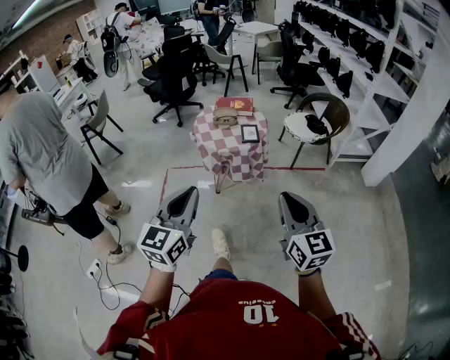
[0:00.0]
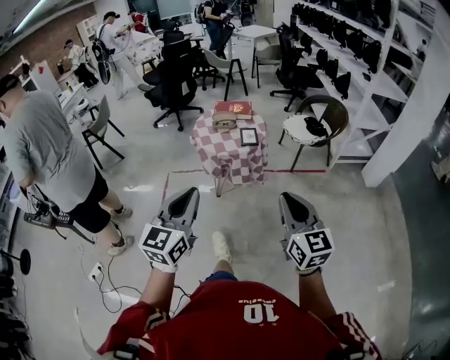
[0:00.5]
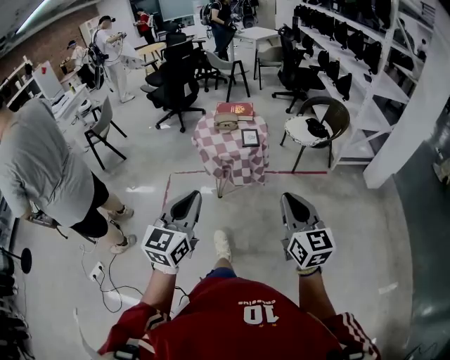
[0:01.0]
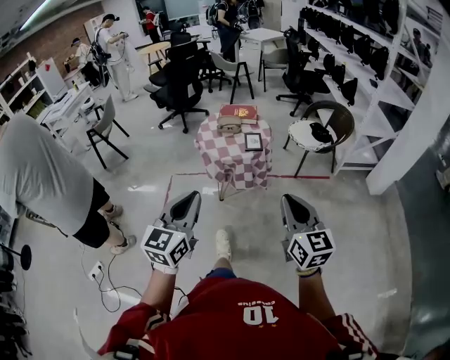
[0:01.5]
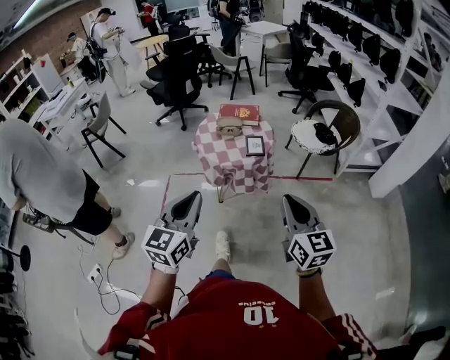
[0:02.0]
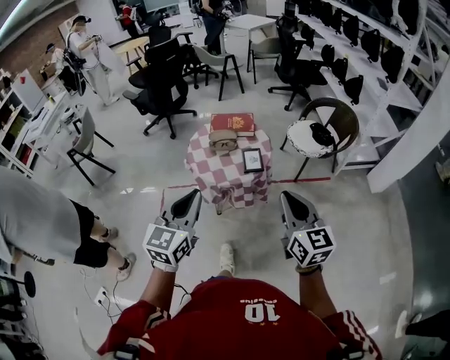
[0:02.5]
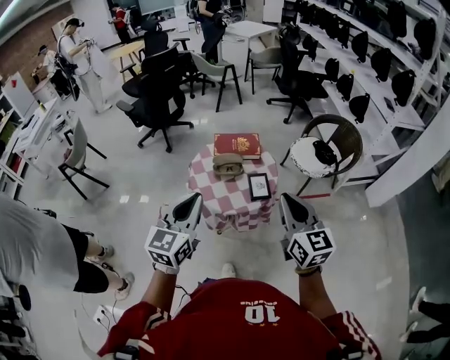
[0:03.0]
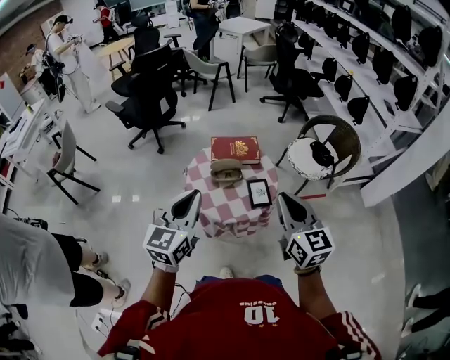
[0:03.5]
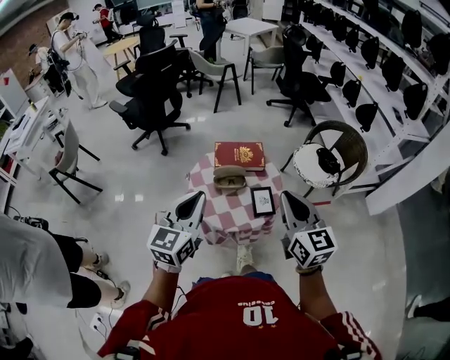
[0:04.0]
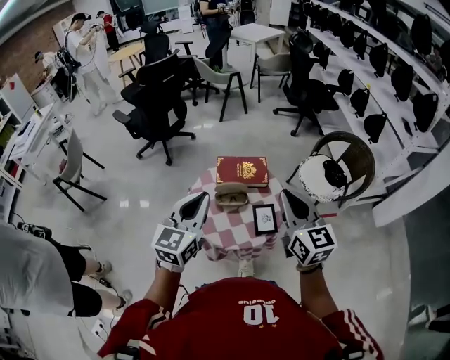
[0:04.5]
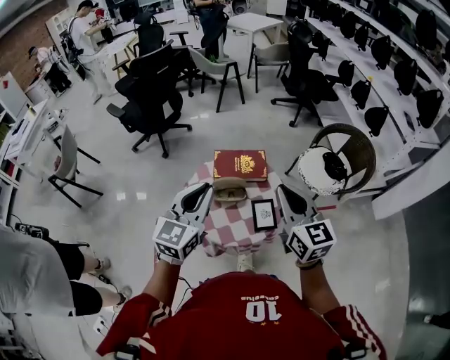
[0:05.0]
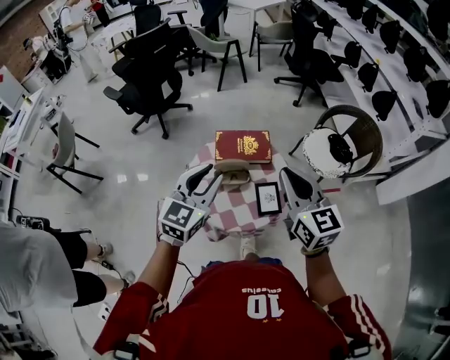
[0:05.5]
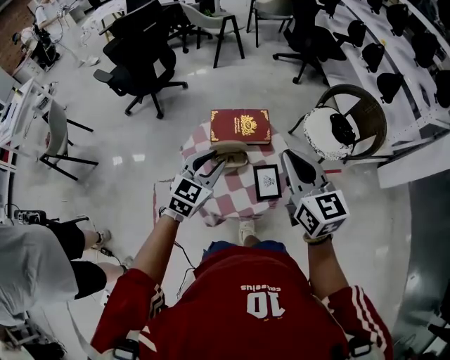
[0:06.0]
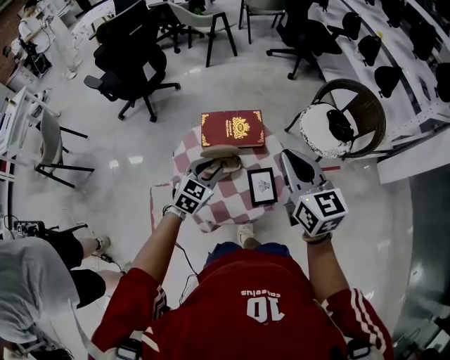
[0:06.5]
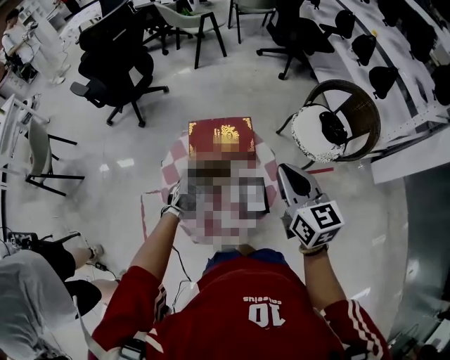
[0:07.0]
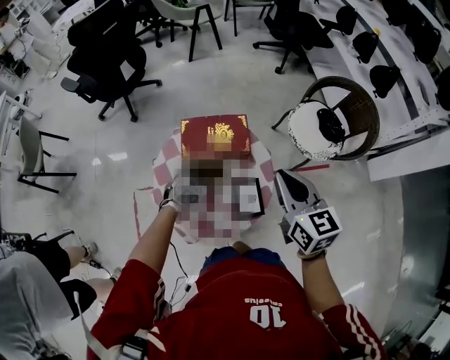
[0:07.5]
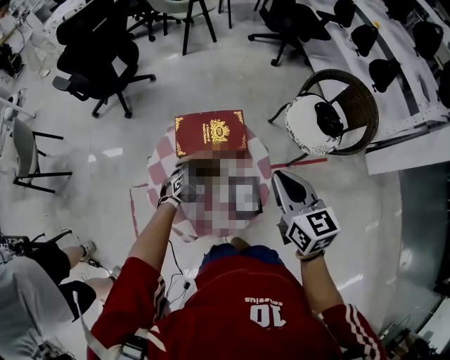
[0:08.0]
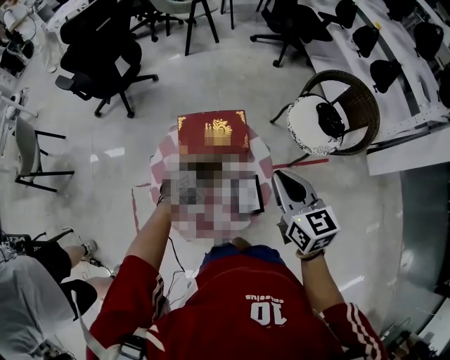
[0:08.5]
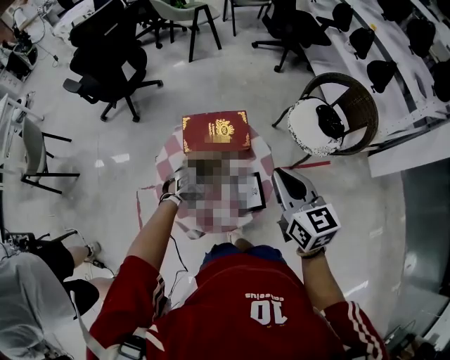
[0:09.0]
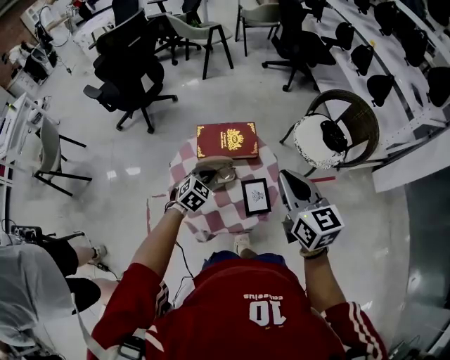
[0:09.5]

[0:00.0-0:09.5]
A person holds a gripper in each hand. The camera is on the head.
0:00.0 to 0:02.0: Both grippers move forward, approximately 10 cm.
0:02.0 to 0:04.0: The pair of grippers is taken forward, some 40 cm.
0:04.0 to 0:05.5: Both grippers move forward, approximately 15 cm. The left gripper opens.
0:05.5 to 0:07.5: The right gripper shifts roughly 15 cm downward, forward and to the right, while the left gripper heads downward and forward, covering approximately 40 cm, and tips its fingers downward by roughly 40 degrees.
0:07.5 to 0:09.5: The left gripper is displaced upward and backward by some 10 cm, and closes, while the right gripper moves backward and upward, roughly 10 cm.

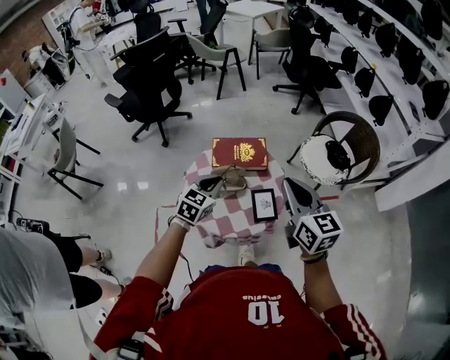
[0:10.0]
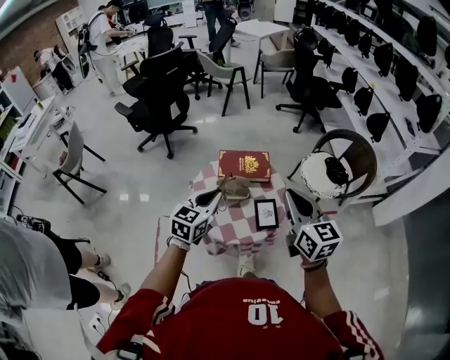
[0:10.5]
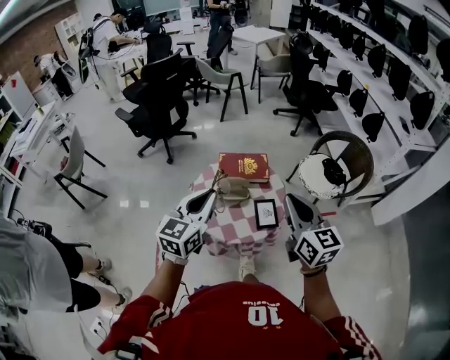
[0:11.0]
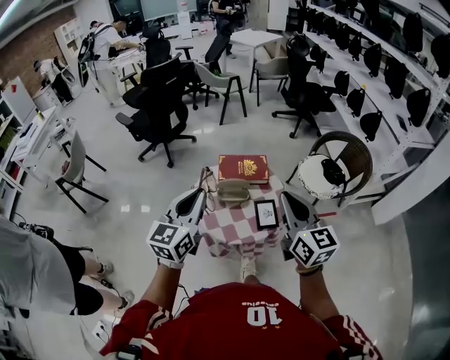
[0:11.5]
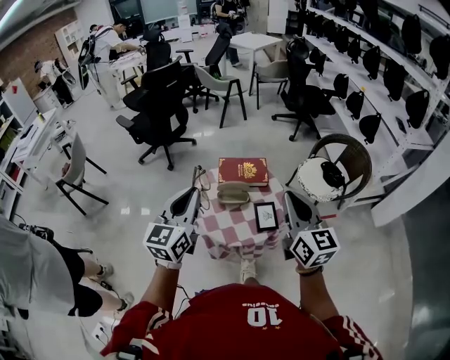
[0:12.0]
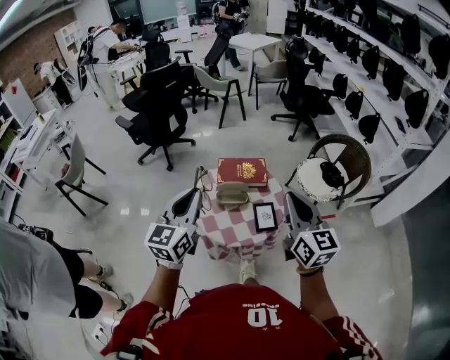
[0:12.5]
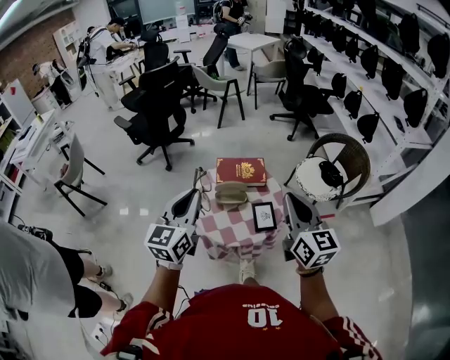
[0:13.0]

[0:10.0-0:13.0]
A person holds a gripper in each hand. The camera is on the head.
0:10.0 to 0:11.5: The left gripper heads upward and backward, covering some 25 cm, and turns by approximately 30 degrees; the right gripper is displaced backward and upward by approximately 10 cm.
0:11.5 to 0:13.0: There are only small adjustments of the grippers.

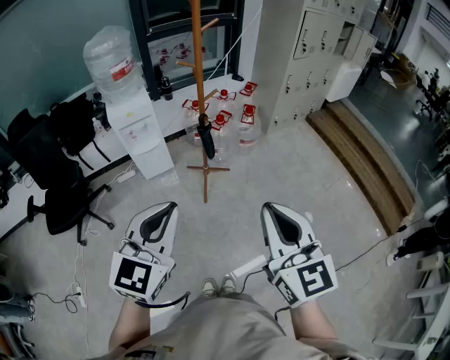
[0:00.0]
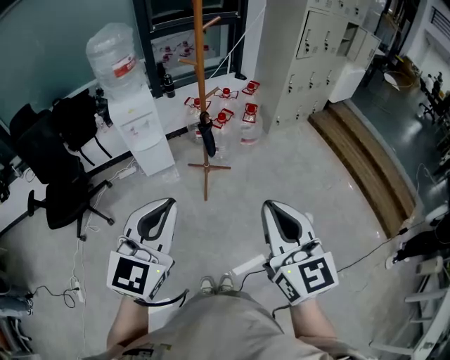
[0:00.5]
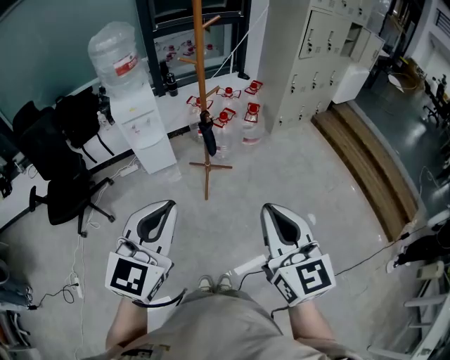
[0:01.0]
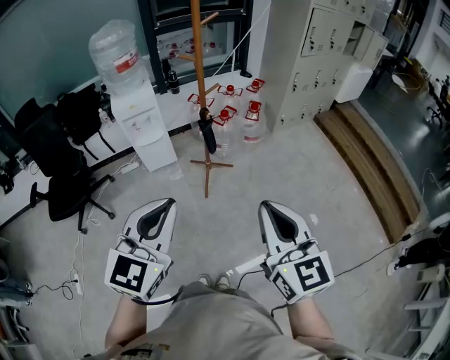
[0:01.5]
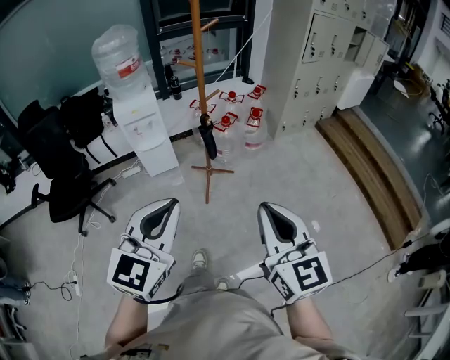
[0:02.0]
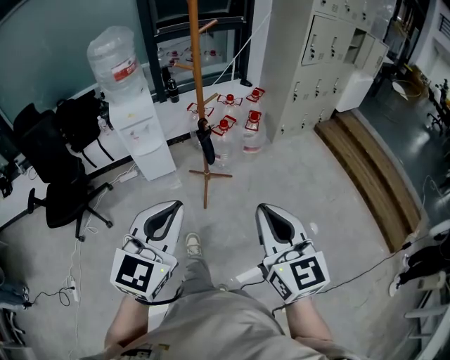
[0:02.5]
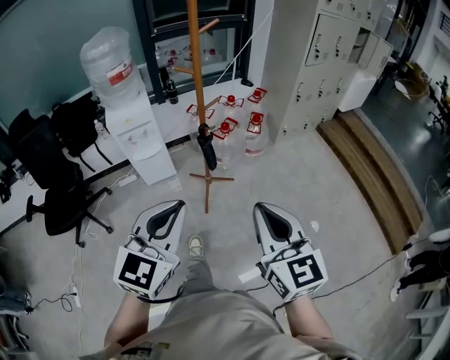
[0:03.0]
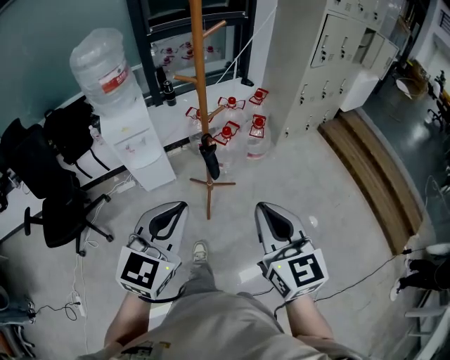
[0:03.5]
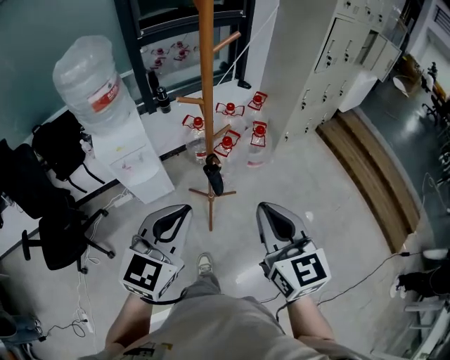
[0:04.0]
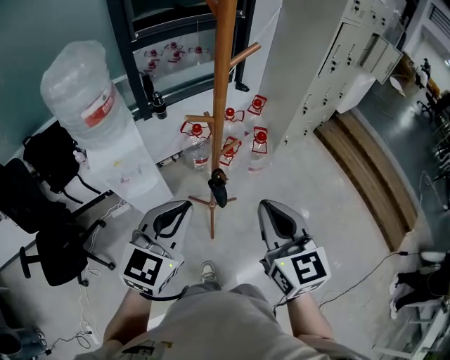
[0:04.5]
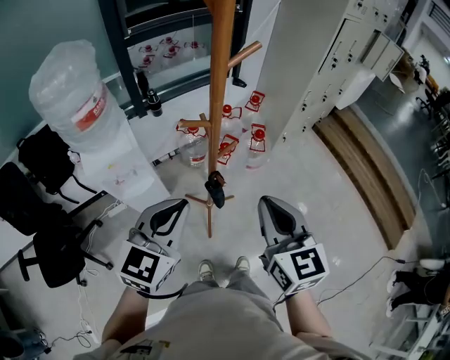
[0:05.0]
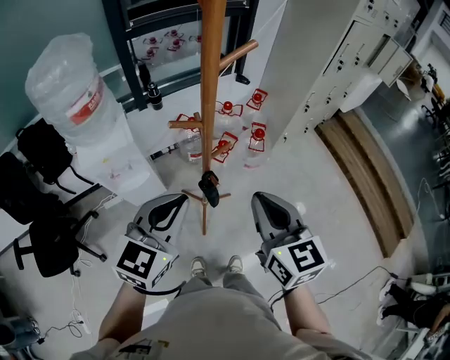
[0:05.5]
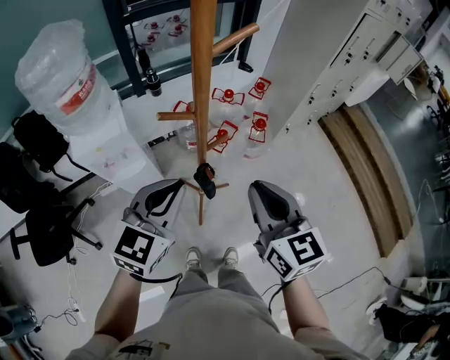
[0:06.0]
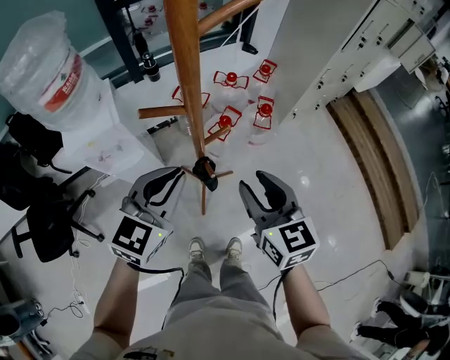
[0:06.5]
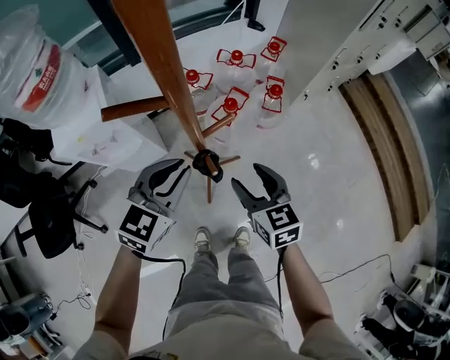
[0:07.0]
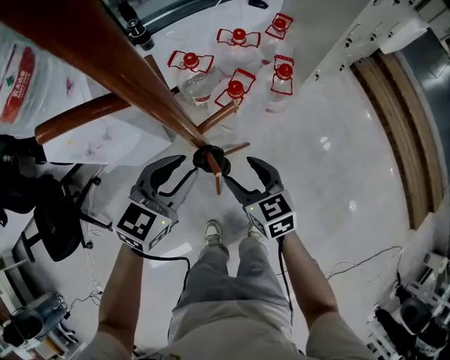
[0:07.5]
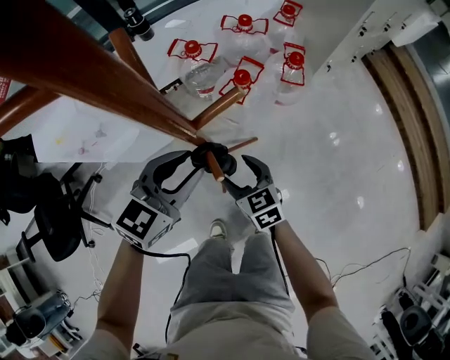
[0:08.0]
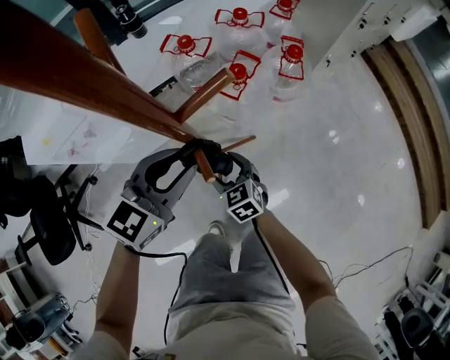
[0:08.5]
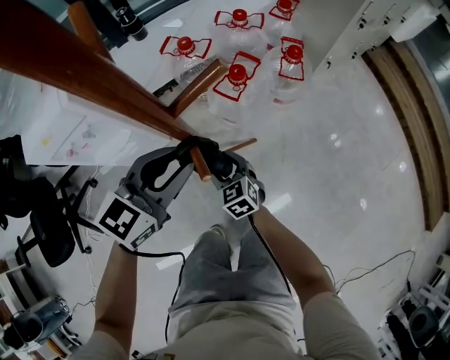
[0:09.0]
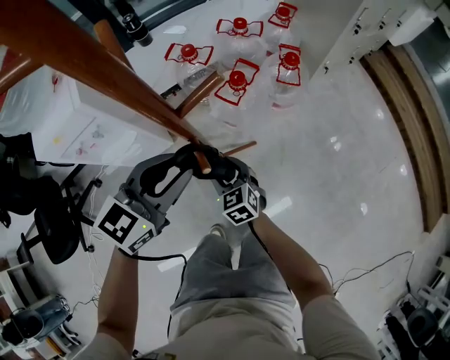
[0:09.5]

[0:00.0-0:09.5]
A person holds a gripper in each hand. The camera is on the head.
0:00.0 to 0:02.0: The grippers both shift to the right by about 5 cm.
0:02.0 to 0:04.0: Both grippers move forward, some 35 cm.
0:04.0 to 0:05.5: Both grippers travel together forward, approximately 15 cm.
0:05.5 to 0:07.5: The right gripper shifts some 40 cm downward, rotates some 20 degrees, and opens up, while the left gripper travels downward and forward by approximately 30 cm, and opens its fingers.
0:07.5 to 0:09.5: The right gripper is displaced downward by roughly 20 cm.

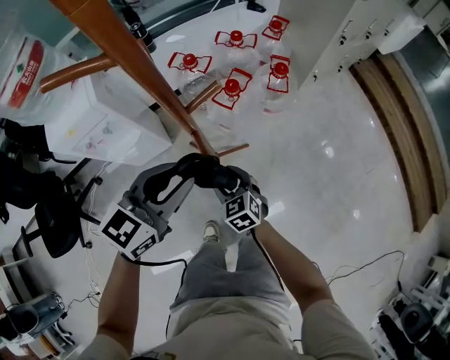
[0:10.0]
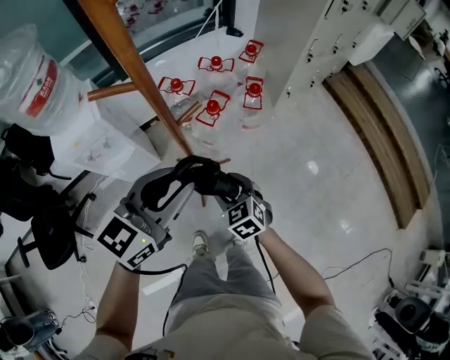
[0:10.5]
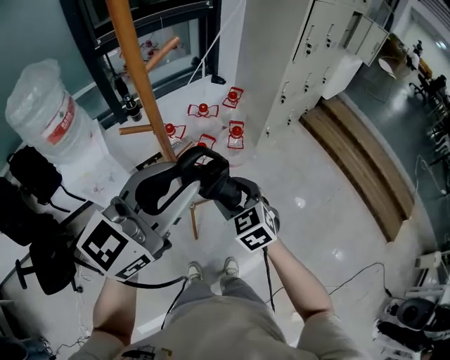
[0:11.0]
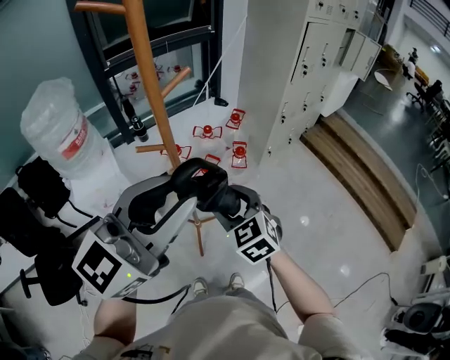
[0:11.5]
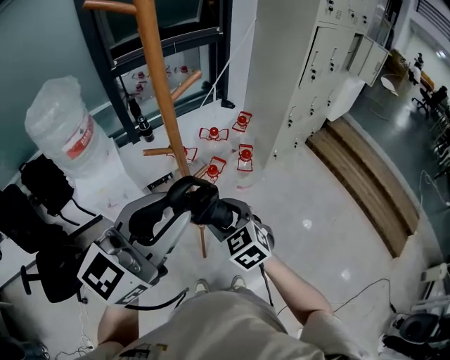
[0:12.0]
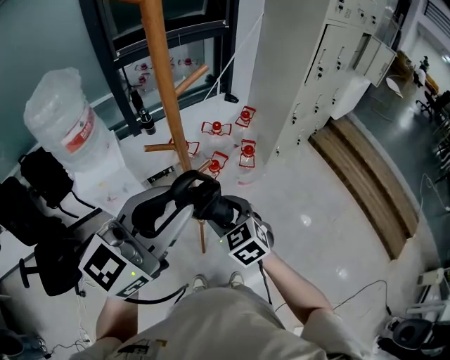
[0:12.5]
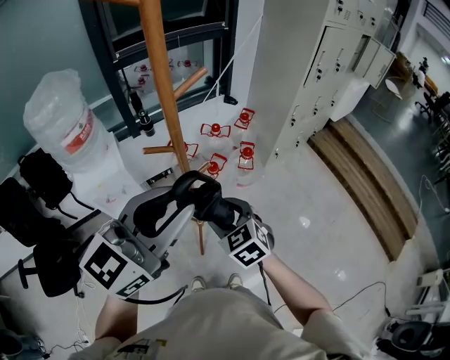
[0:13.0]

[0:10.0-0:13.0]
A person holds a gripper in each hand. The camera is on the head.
0:10.0 to 0:11.5: The grippers both shift upward by approximately 40 cm. The left gripper rotates about 30 degrees.
0:11.5 to 0:13.0: The left gripper changes place by approximately 5 cm. Meanwhile the right gripper shifts about 5 cm downward.

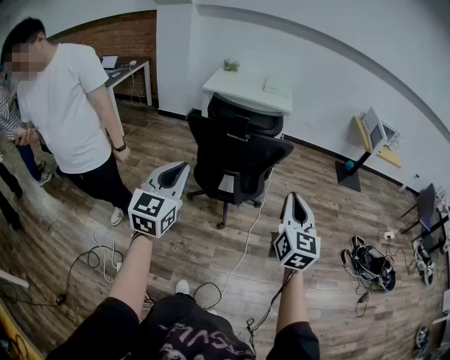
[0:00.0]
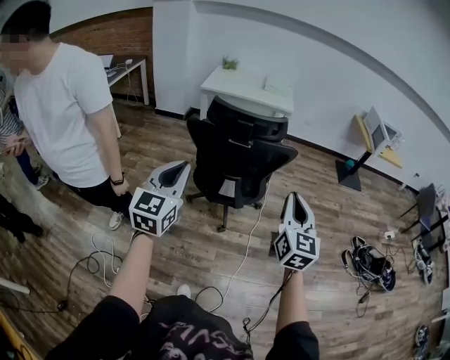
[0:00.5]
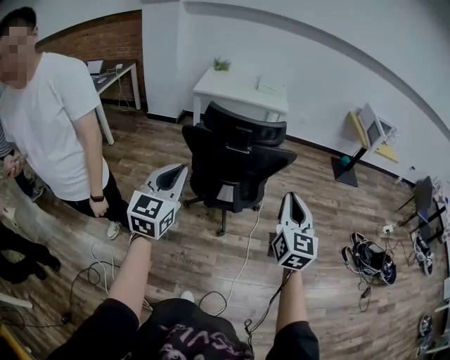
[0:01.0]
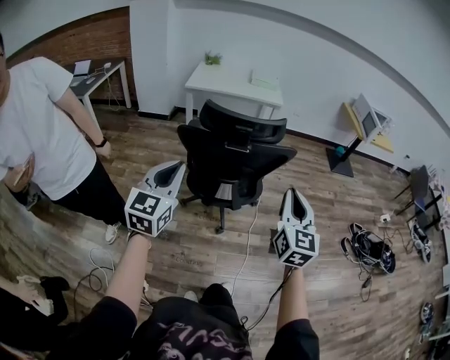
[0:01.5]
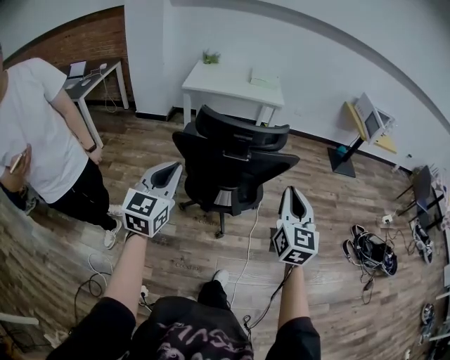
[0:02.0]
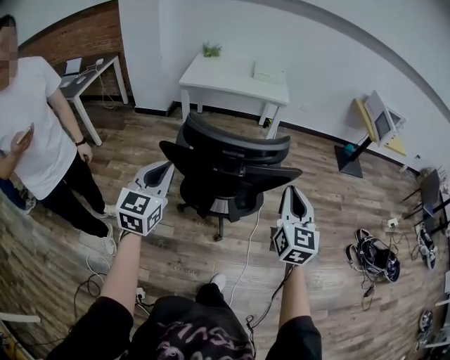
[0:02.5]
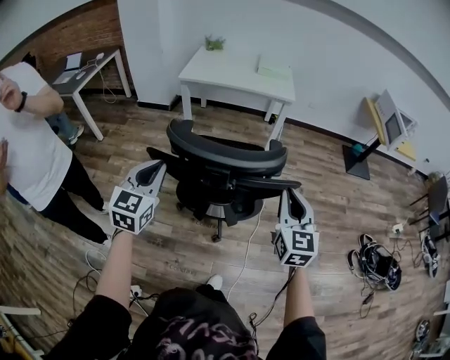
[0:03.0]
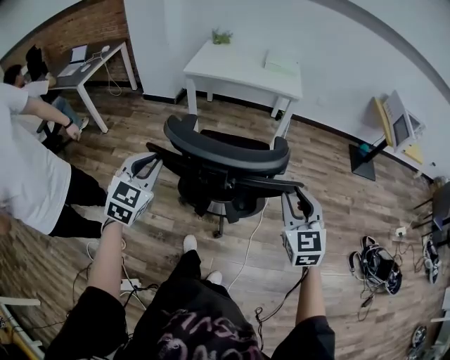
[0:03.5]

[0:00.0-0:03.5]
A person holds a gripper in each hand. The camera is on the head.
0:00.0 to 0:02.0: The two grippers go about 20 cm forward and to the left.
0:02.0 to 0:03.5: Both grippers travel together forward, about 20 cm. The right gripper changes its angle by approximately 30 degrees, and opens. The left gripper turns by some 20 degrees.
